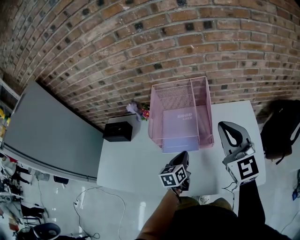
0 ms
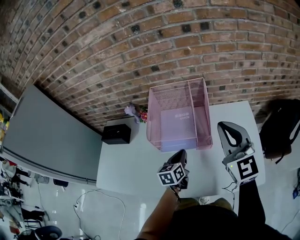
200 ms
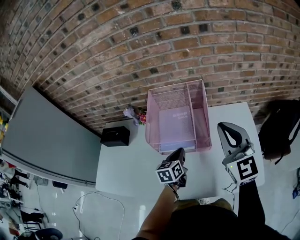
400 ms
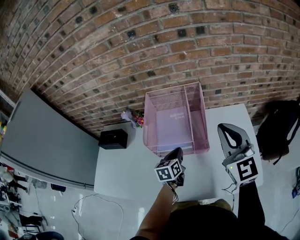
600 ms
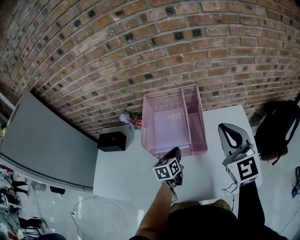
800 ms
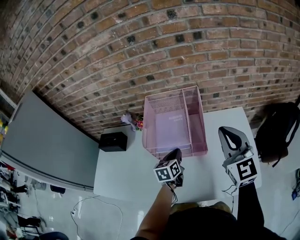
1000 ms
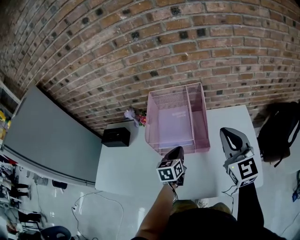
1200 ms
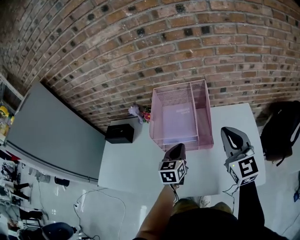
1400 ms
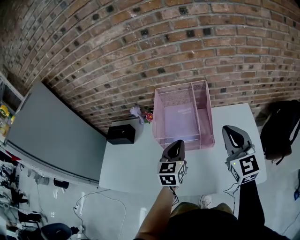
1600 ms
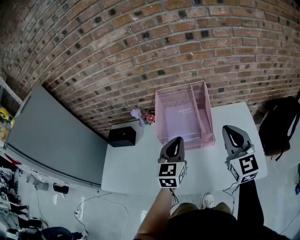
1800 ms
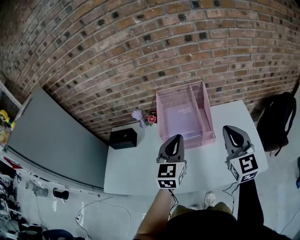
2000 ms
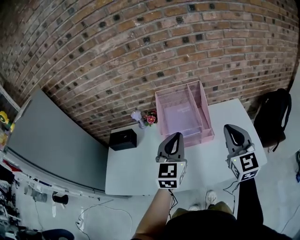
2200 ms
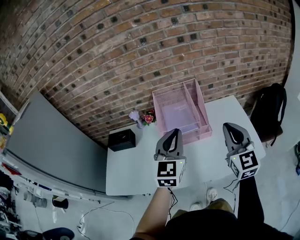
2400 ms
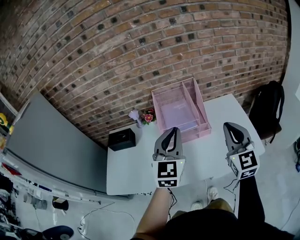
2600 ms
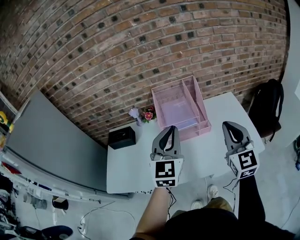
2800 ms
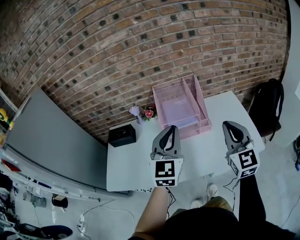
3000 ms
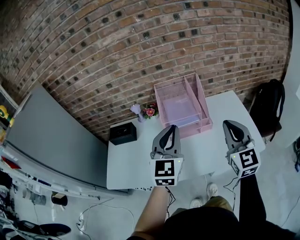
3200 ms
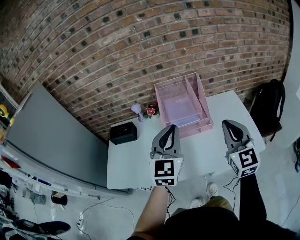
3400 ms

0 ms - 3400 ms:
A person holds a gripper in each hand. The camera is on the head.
0 ms - 1600 ms: The left gripper is displaced upward by about 15 cm, and swivels some 30 degrees.
1600 ms - 3400 ms: The right gripper travels backward by some 15 cm; the left gripper shifts roughly 20 cm upward and backward, and turns by about 20 degrees.

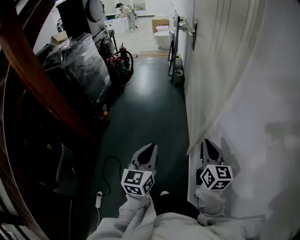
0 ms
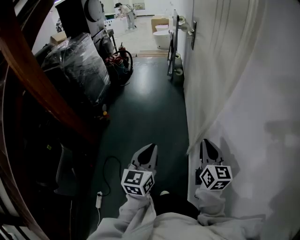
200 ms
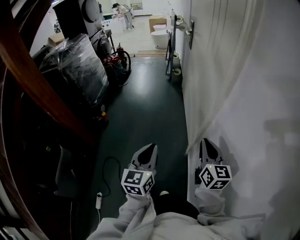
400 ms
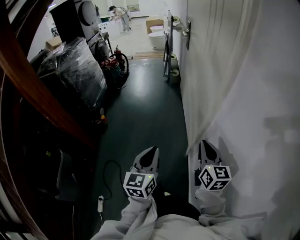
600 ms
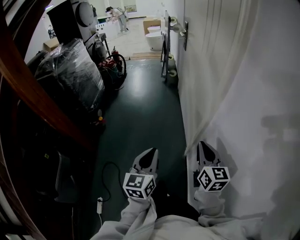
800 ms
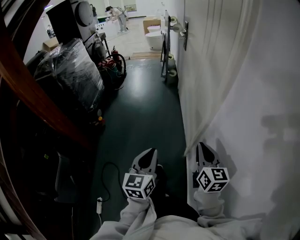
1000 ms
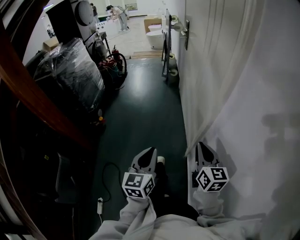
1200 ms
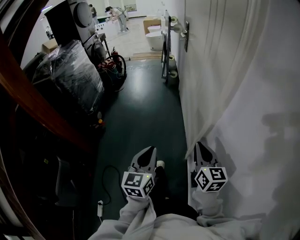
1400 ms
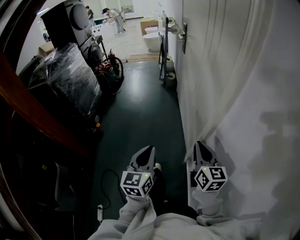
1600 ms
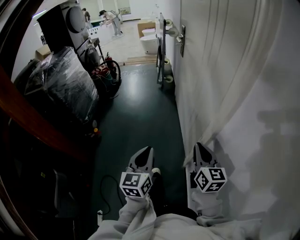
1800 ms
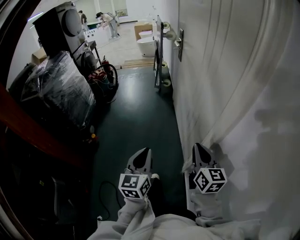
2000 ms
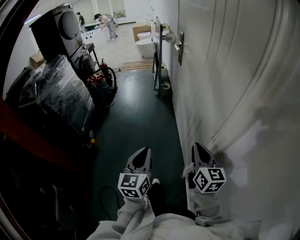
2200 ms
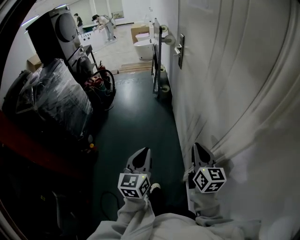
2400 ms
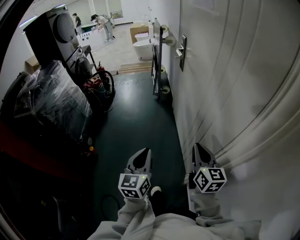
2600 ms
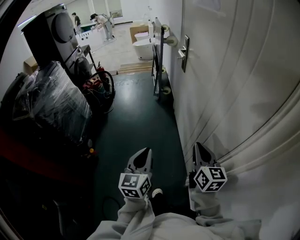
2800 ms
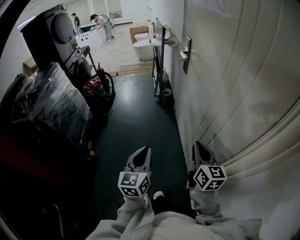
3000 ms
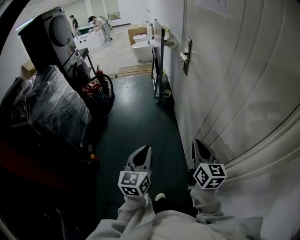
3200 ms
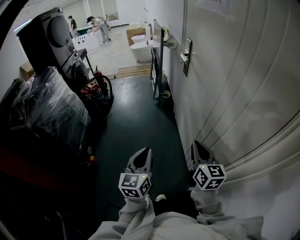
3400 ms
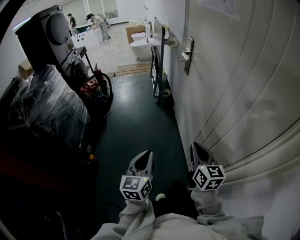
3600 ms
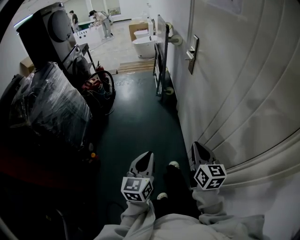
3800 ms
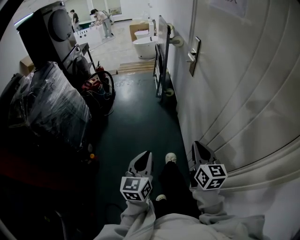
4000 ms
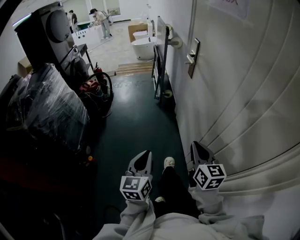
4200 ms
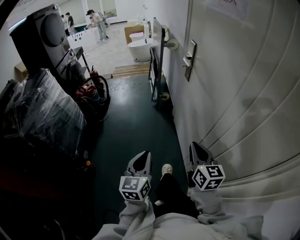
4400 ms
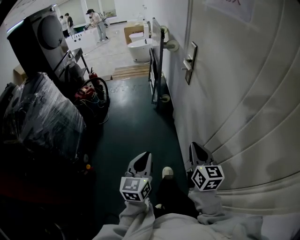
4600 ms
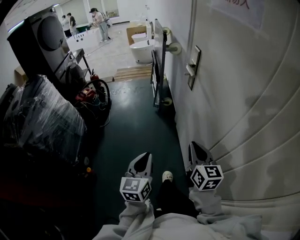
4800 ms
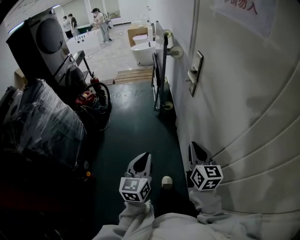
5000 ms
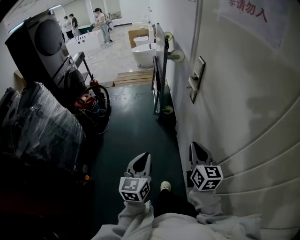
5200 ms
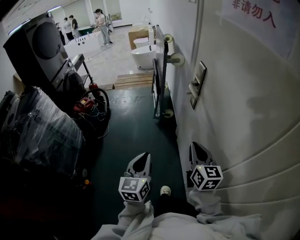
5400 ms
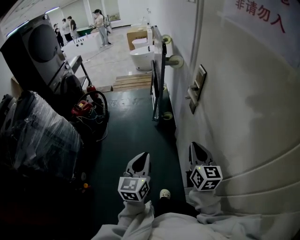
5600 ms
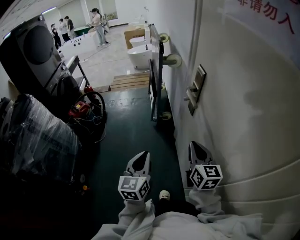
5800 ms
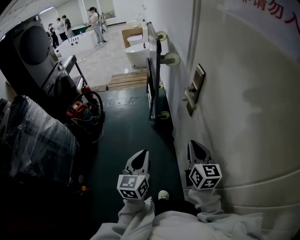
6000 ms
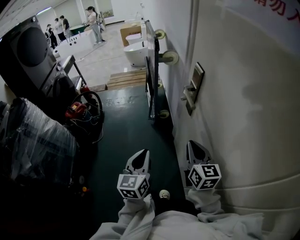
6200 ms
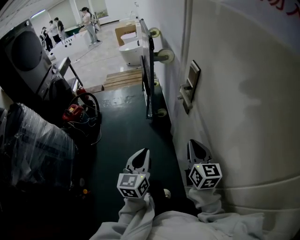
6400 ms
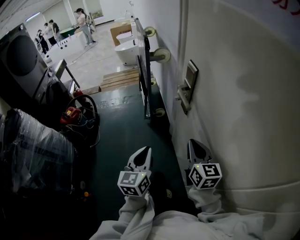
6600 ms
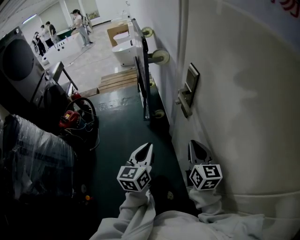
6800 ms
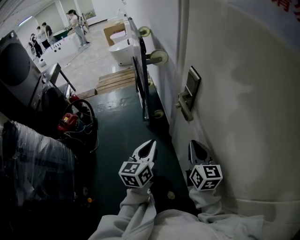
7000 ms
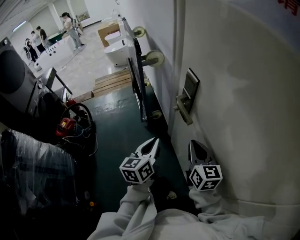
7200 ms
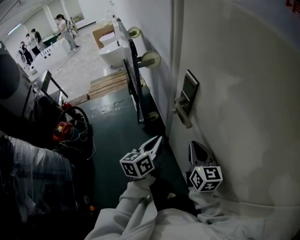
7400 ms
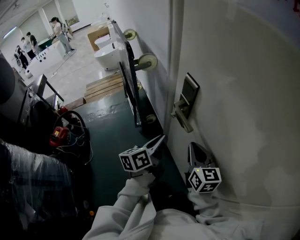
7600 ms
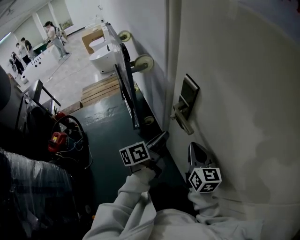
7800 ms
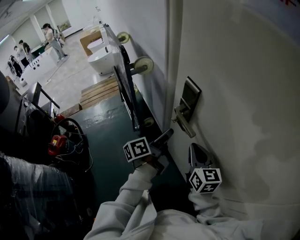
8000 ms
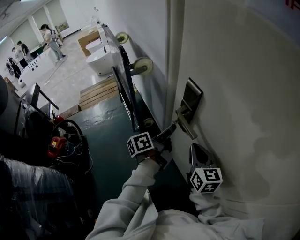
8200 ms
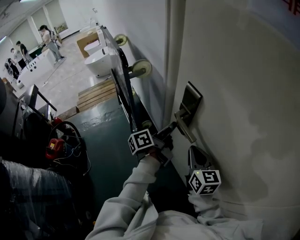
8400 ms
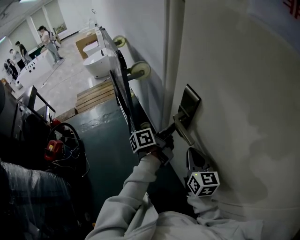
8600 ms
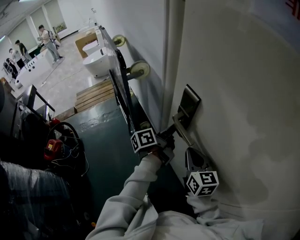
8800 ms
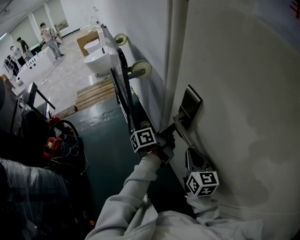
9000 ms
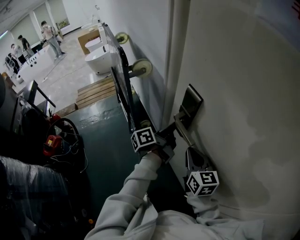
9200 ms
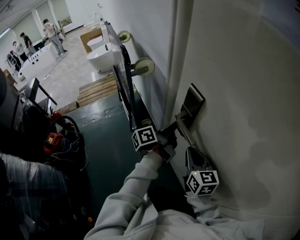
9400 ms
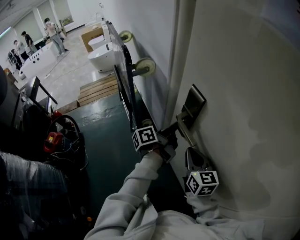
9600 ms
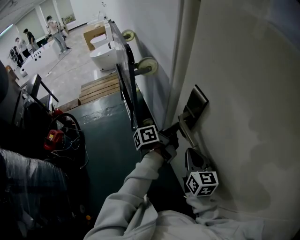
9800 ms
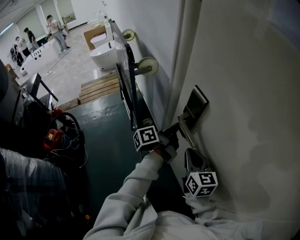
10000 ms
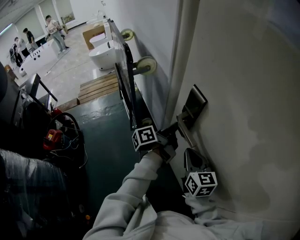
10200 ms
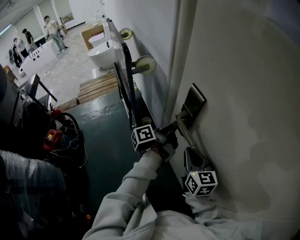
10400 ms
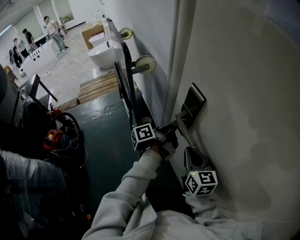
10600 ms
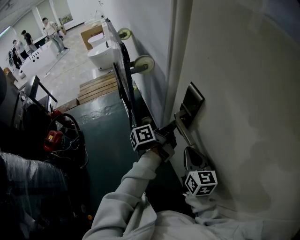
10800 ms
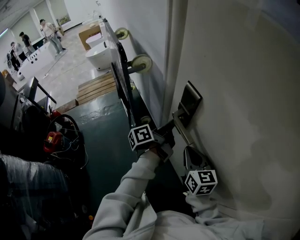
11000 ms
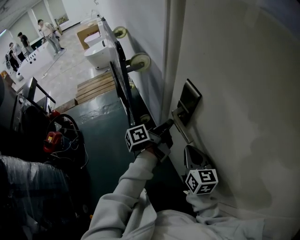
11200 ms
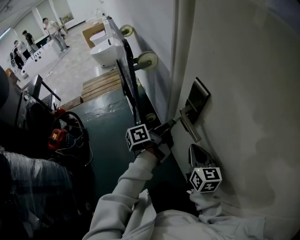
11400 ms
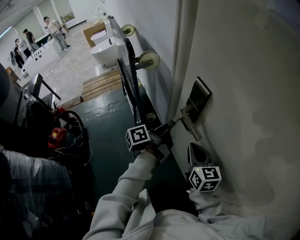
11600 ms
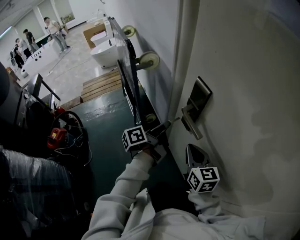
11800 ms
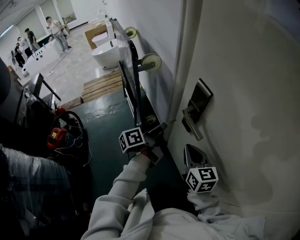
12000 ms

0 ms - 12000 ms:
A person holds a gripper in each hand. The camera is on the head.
0 ms - 1600 ms: The two grippers go some 10 cm forward.
1600 ms - 3000 ms: The two grippers go approximately 30 cm forward.
3000 ms - 4400 ms: Both grippers move forward, approximately 10 cm.
4400 ms - 6000 ms: Both grippers travel together forward, some 35 cm.
6000 ms - 7600 ms: The left gripper changes place by about 25 cm, and rotates approximately 50 degrees, while the right gripper shifts by some 10 cm.
7600 ms - 9000 ms: The left gripper shifts about 10 cm forward, changes its angle by some 30 degrees, and opens, then closes once more.
9000 ms - 10400 ms: The grippers move only a little.
10400 ms - 12000 ms: The left gripper travels to the left by some 5 cm.

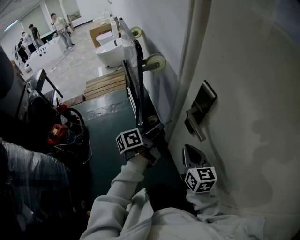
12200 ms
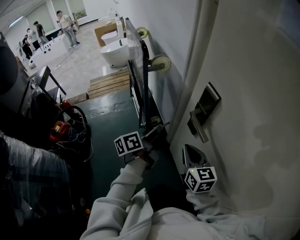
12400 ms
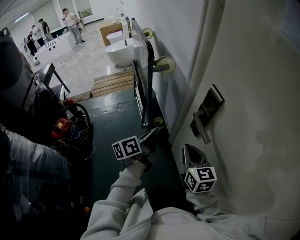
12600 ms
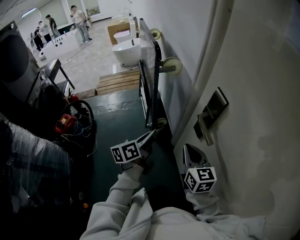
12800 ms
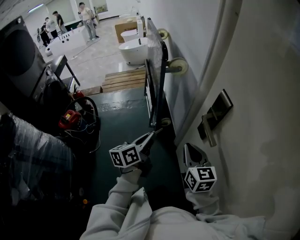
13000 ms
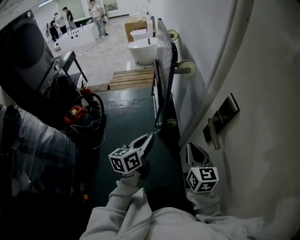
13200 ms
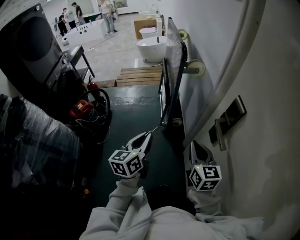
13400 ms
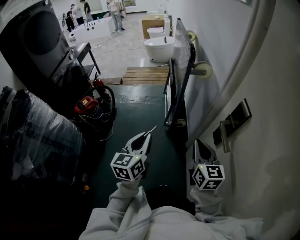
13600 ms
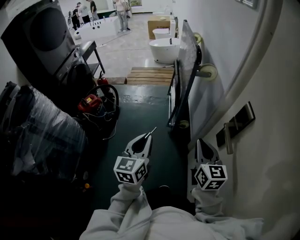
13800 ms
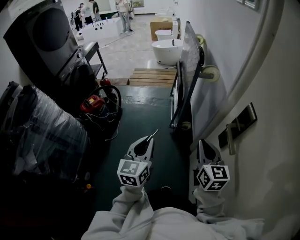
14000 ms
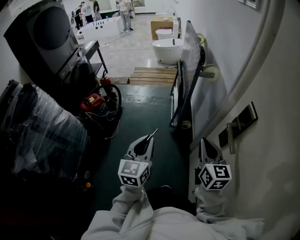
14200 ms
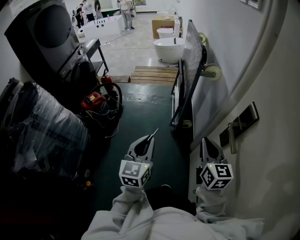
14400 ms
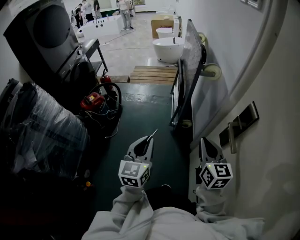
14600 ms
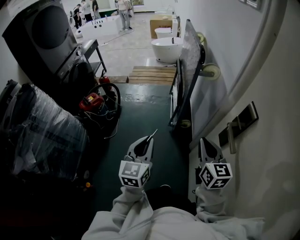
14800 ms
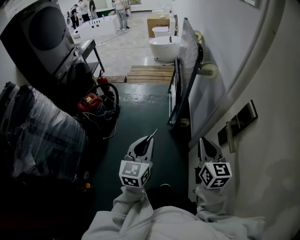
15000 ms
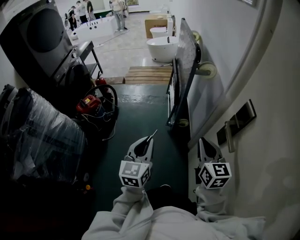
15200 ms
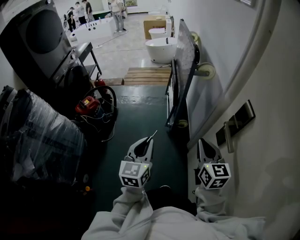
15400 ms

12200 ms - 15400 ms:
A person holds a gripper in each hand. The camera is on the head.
12200 ms - 13800 ms: The right gripper ends up about 10 cm from where it was; the left gripper moves about 25 cm, and changes its angle by approximately 70 degrees.
13800 ms - 15400 ms: The grippers make only small movements.

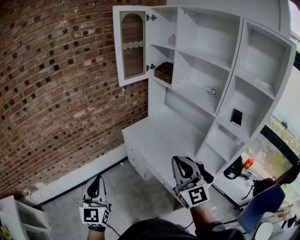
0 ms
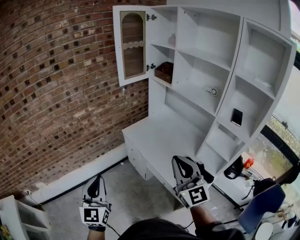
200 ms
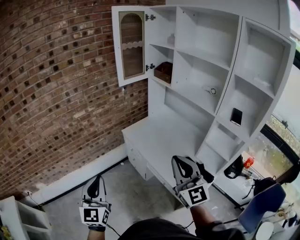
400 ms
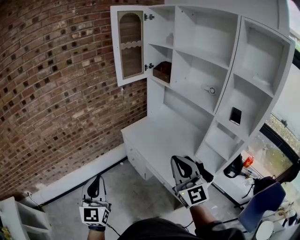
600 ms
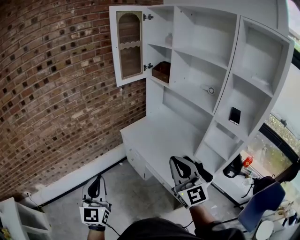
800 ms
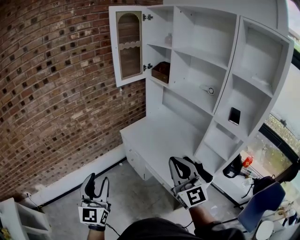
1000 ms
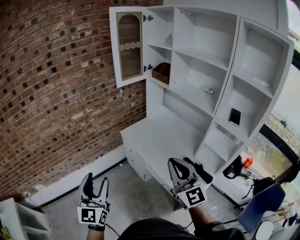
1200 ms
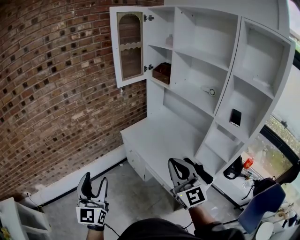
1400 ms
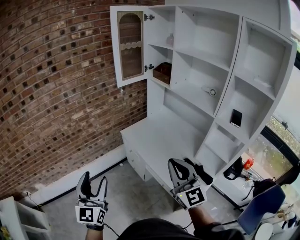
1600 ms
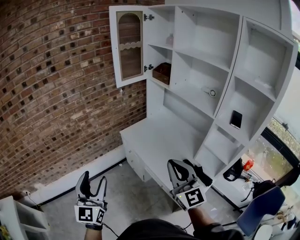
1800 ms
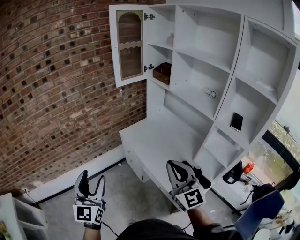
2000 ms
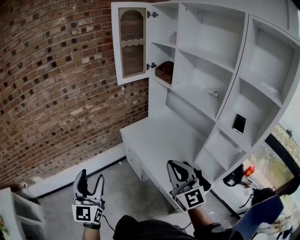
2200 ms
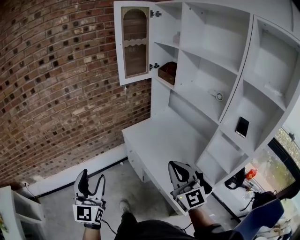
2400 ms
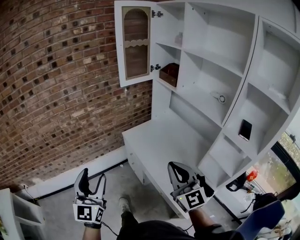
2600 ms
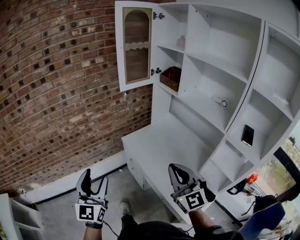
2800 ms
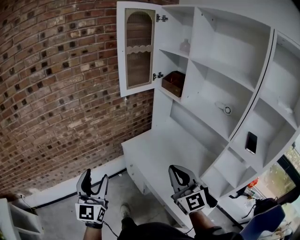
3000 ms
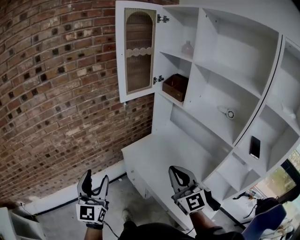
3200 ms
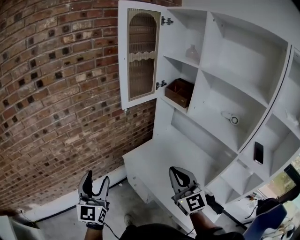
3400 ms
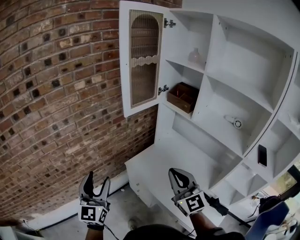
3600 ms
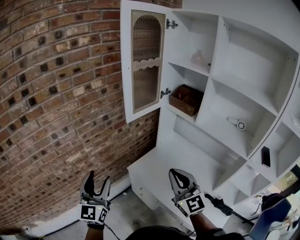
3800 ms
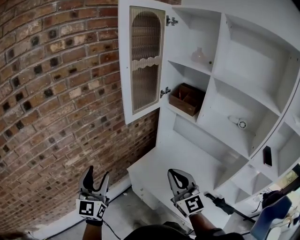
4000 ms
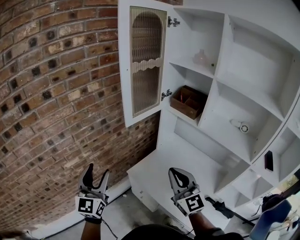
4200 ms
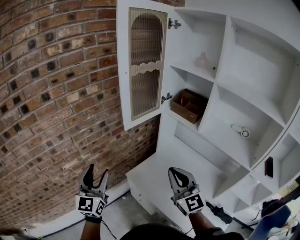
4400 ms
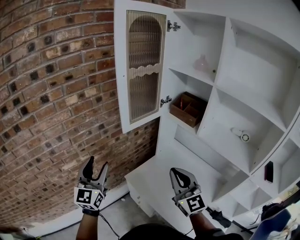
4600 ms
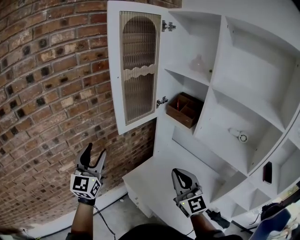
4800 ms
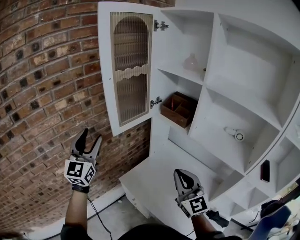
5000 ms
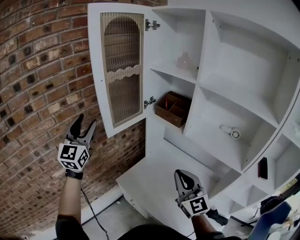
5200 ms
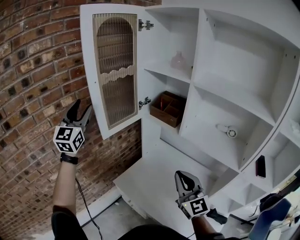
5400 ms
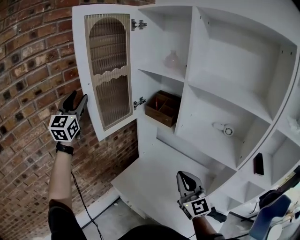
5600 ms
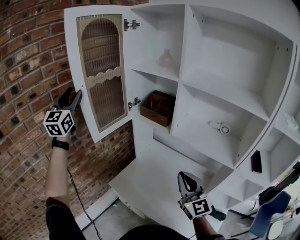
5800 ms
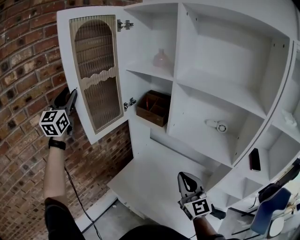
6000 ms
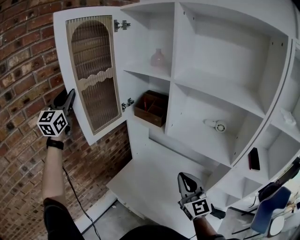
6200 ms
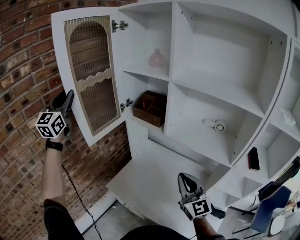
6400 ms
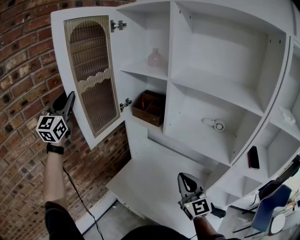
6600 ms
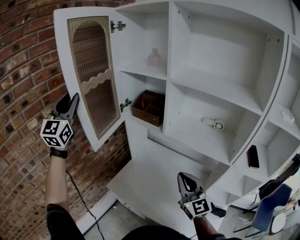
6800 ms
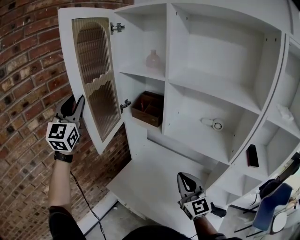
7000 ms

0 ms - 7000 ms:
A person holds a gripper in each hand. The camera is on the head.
0 ms - 1400 ms: The left gripper opens up.
1400 ms - 2800 ms: The grippers both shift forward by some 10 cm.
2800 ms - 4200 ms: The two grippers go some 30 cm forward.
4200 ms - 5600 ms: The left gripper heads forward and upward, covering approximately 35 cm. The right gripper goes approximately 15 cm to the right.
5600 ms - 7000 ms: The right gripper moves roughly 5 cm; the left gripper shifts about 10 cm to the right.
